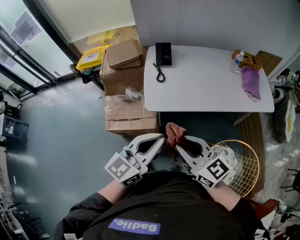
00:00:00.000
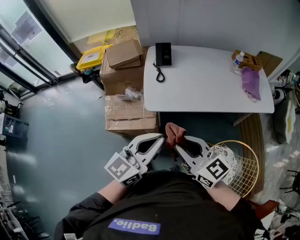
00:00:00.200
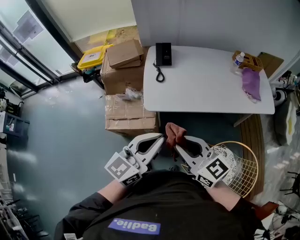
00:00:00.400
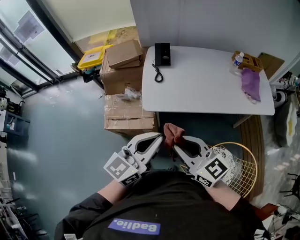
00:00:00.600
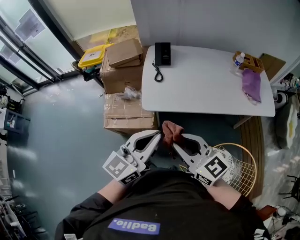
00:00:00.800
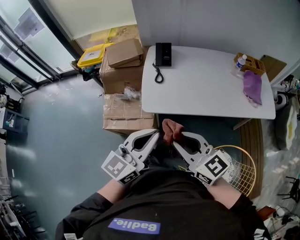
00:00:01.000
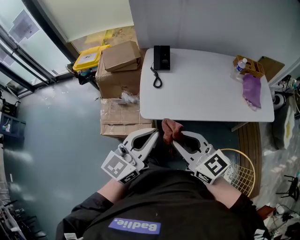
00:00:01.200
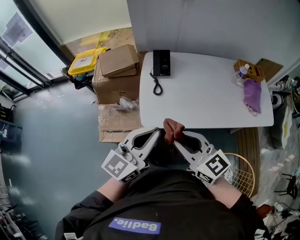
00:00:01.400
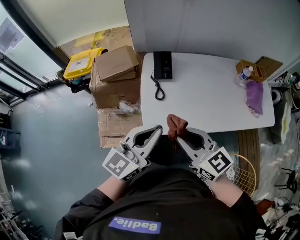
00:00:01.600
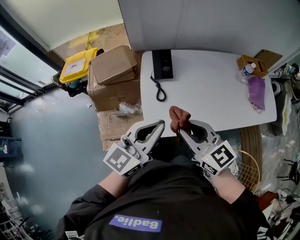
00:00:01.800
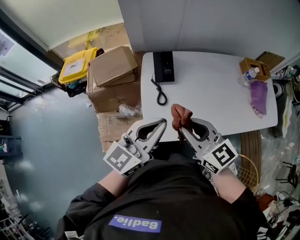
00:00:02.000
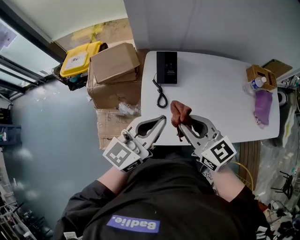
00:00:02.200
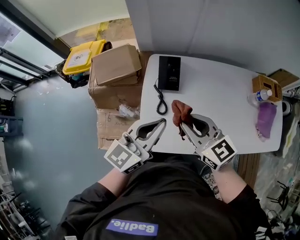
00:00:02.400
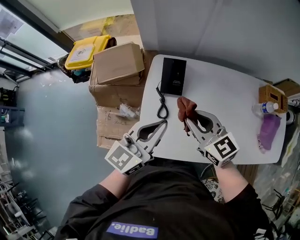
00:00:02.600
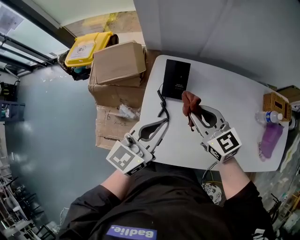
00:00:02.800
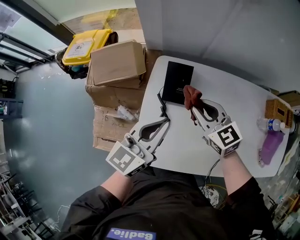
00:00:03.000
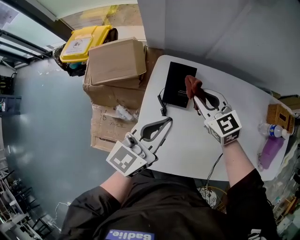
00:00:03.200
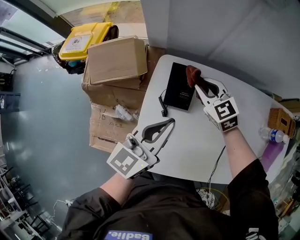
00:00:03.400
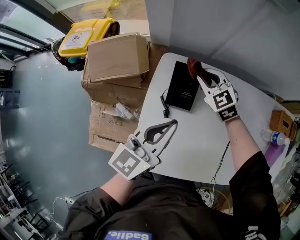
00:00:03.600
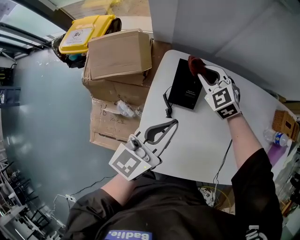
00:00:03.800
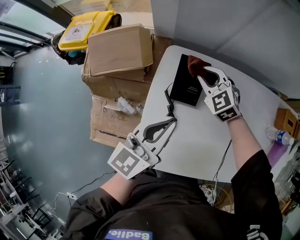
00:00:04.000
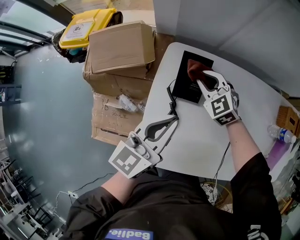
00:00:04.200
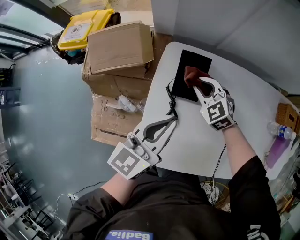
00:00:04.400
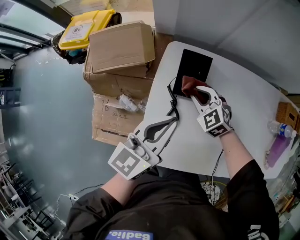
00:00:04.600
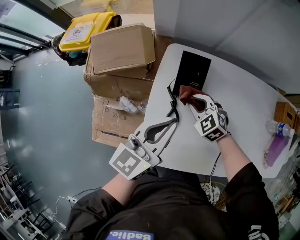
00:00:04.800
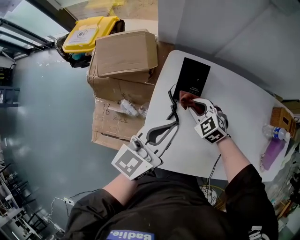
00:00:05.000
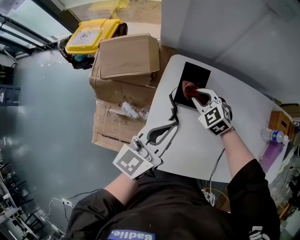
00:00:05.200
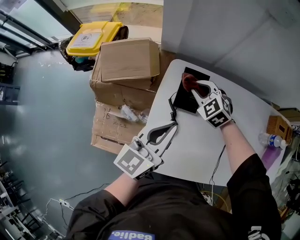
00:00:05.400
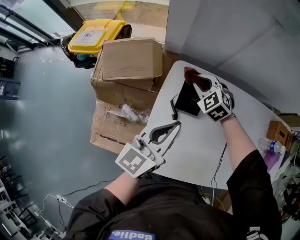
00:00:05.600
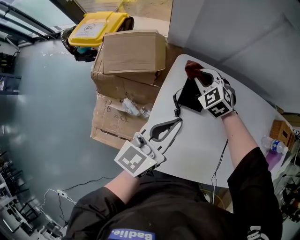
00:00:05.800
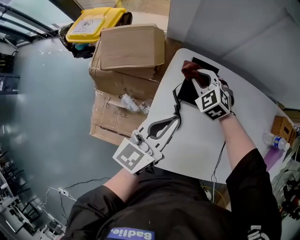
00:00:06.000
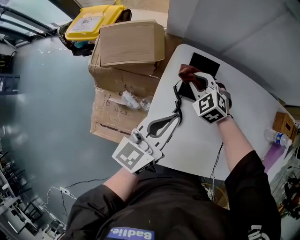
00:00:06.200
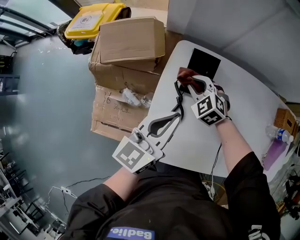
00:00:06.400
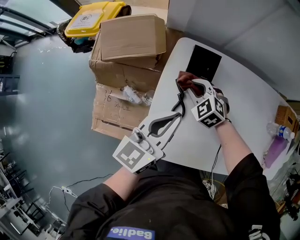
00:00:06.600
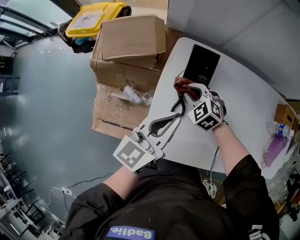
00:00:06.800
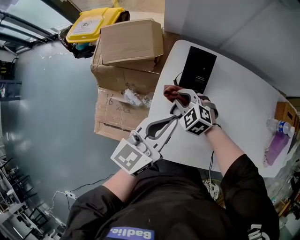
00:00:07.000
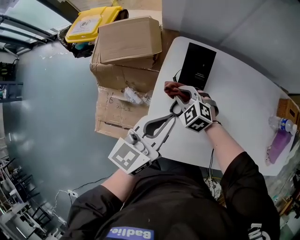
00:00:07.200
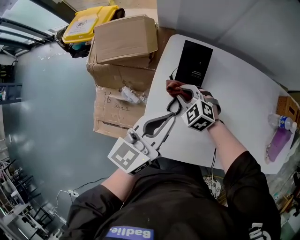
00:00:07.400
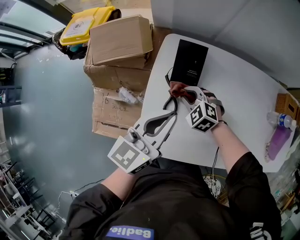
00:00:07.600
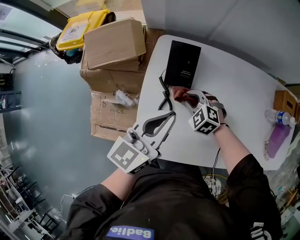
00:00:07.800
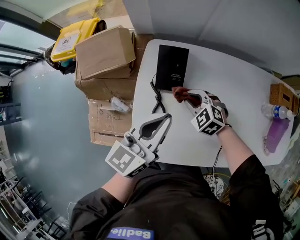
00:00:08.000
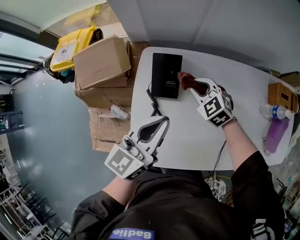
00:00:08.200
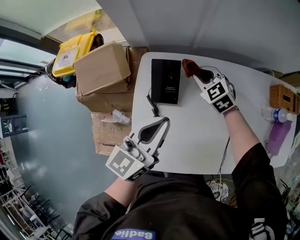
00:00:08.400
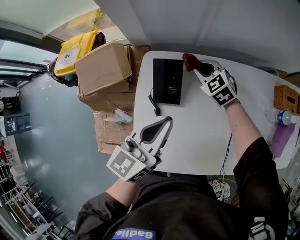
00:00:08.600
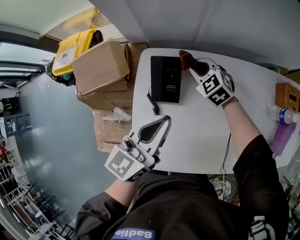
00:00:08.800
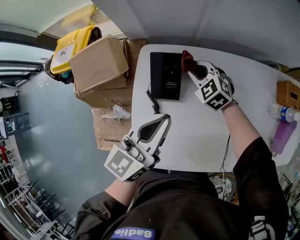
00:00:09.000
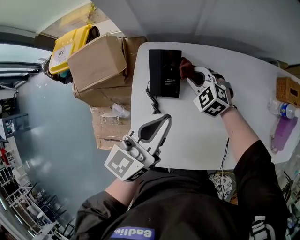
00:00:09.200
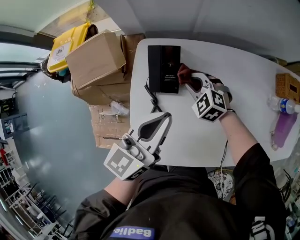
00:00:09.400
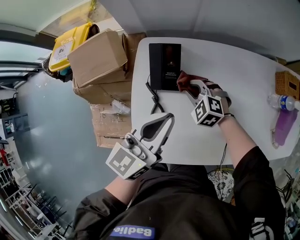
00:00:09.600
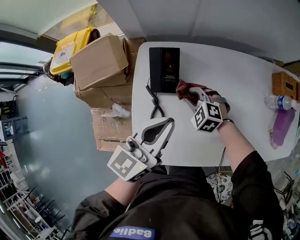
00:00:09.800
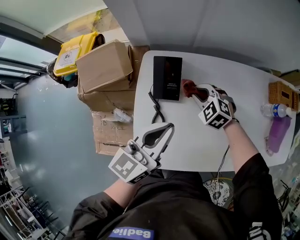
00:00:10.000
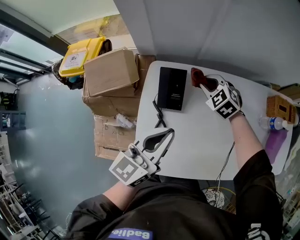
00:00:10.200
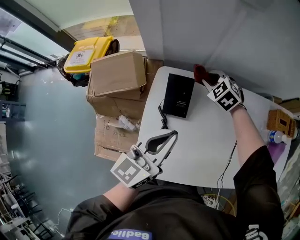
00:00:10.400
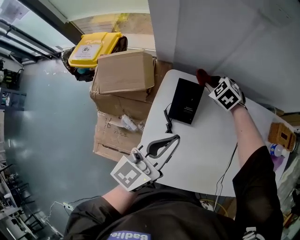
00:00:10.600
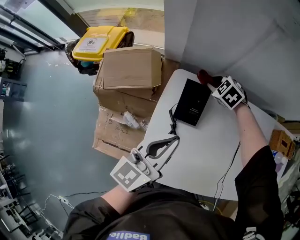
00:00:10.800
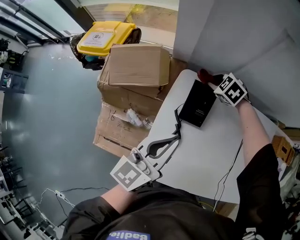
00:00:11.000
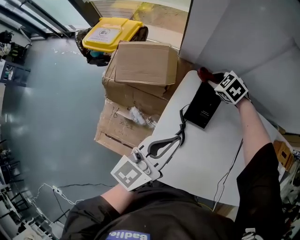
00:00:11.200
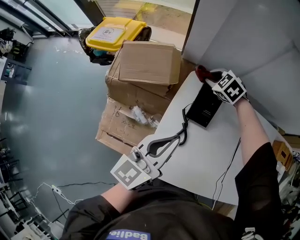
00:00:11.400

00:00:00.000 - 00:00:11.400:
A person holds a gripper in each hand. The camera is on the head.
00:00:00.000 - 00:00:01.400: The two grippers go approximately 15 cm forward.
00:00:01.400 - 00:00:02.800: Both grippers move forward, roughly 35 cm.
00:00:02.800 - 00:00:04.200: The right gripper travels forward and downward by roughly 20 cm, and turns by roughly 40 degrees; the left gripper travels downward and forward by about 10 cm.
00:00:04.200 - 00:00:05.600: The right gripper reaches approximately 10 cm backward, then returns.
00:00:05.600 - 00:00:07.200: The left gripper goes about 5 cm backward. Meanwhile the right gripper travels backward and downward by about 20 cm.
00:00:07.200 - 00:00:08.600: The right gripper is displaced to the right and forward by about 25 cm, and turns by some 20 degrees; the left gripper goes approximately 10 cm to the right and forward.
00:00:08.600 - 00:00:10.000: The right gripper travels backward by about 10 cm. The left gripper travels backward by some 5 cm.
00:00:10.000 - 00:00:11.400: The right gripper travels forward and to the left by about 25 cm. Meanwhile the left gripper heads to the left, covering some 10 cm.

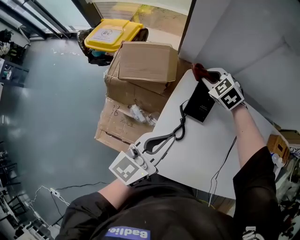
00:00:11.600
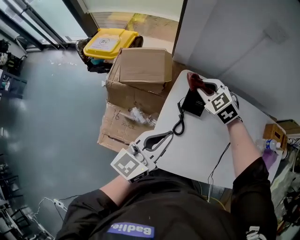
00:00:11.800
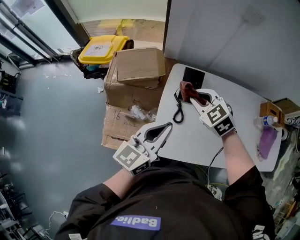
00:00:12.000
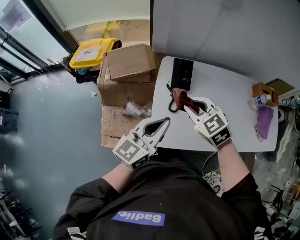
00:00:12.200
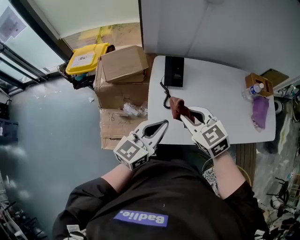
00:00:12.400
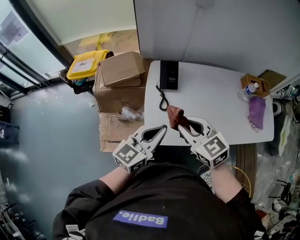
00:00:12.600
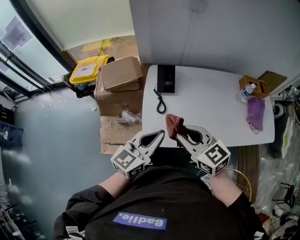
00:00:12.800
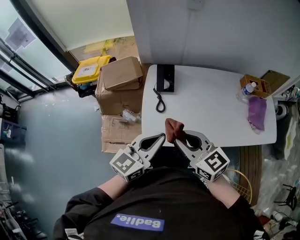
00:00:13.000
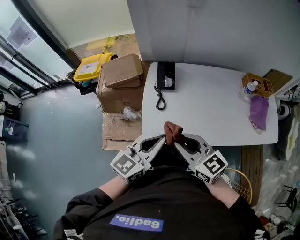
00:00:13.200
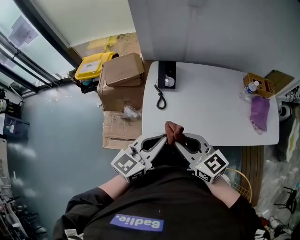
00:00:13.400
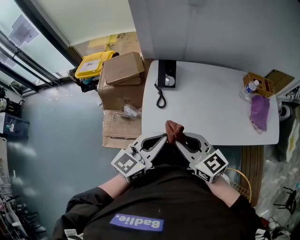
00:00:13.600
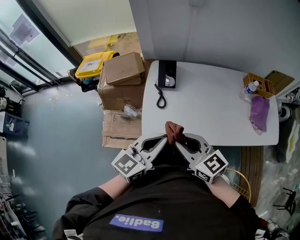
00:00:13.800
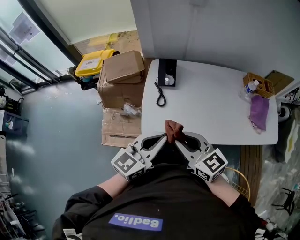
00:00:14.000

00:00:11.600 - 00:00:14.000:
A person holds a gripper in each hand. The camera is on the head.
00:00:11.600 - 00:00:12.800: The right gripper shifts about 50 cm backward, and tilts its fingers about 30 degrees upward; the left gripper moves backward, some 20 cm, and rotates approximately 20 degrees.
00:00:12.800 - 00:00:14.000: The left gripper shifts by approximately 5 cm, while the right gripper moves some 5 cm.

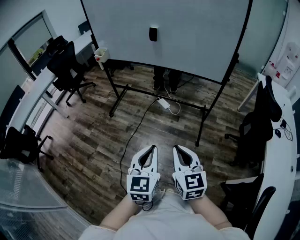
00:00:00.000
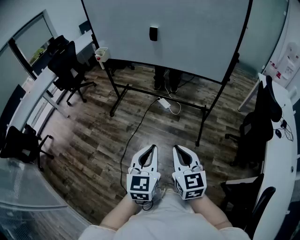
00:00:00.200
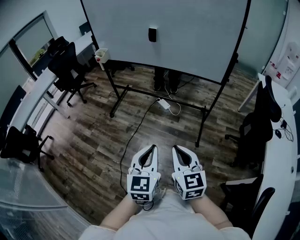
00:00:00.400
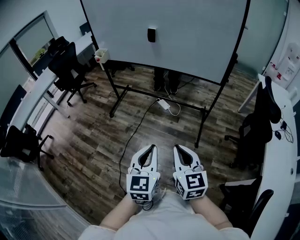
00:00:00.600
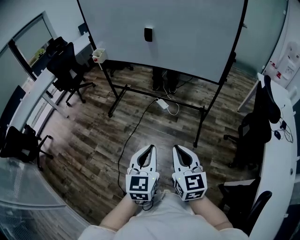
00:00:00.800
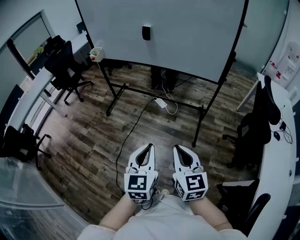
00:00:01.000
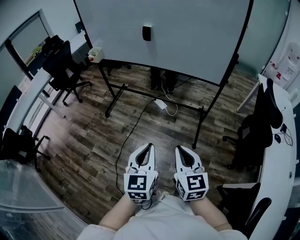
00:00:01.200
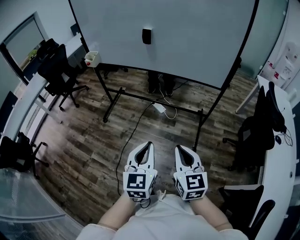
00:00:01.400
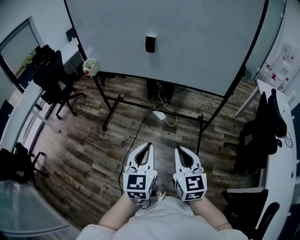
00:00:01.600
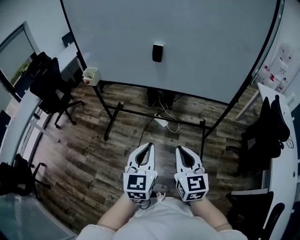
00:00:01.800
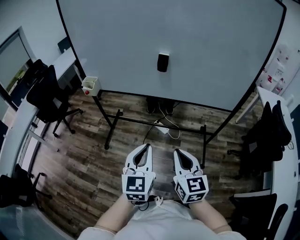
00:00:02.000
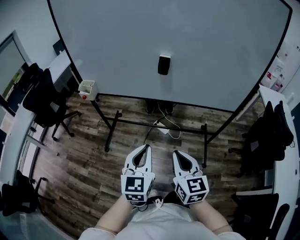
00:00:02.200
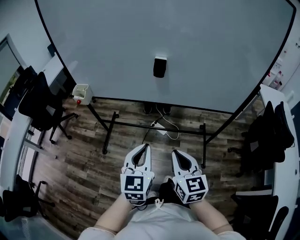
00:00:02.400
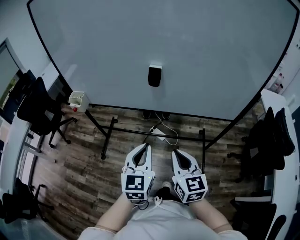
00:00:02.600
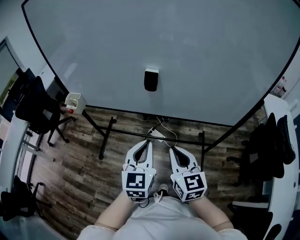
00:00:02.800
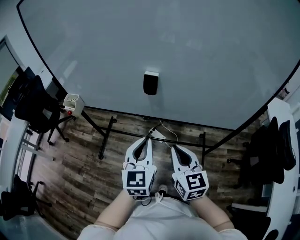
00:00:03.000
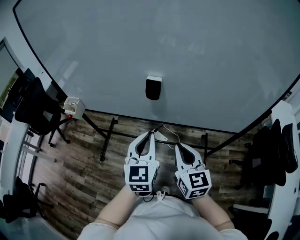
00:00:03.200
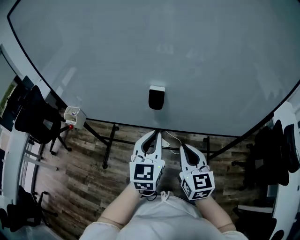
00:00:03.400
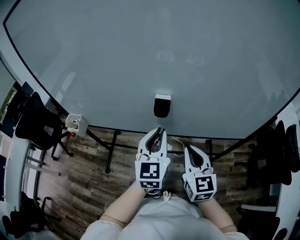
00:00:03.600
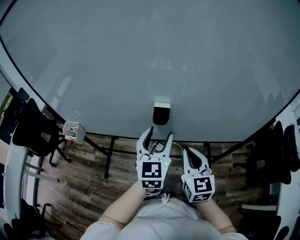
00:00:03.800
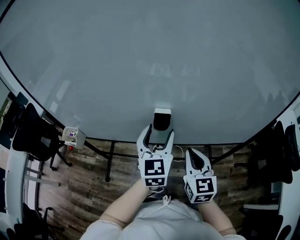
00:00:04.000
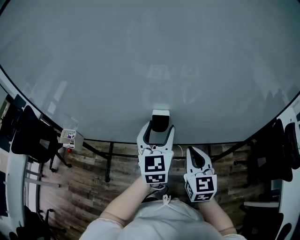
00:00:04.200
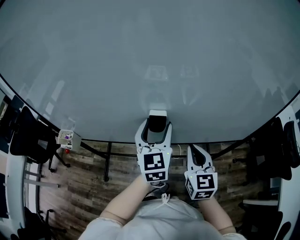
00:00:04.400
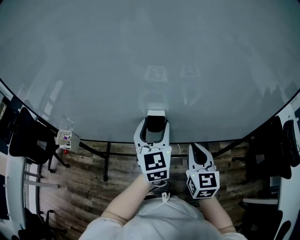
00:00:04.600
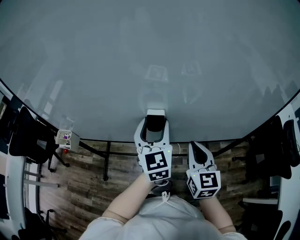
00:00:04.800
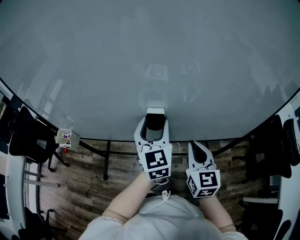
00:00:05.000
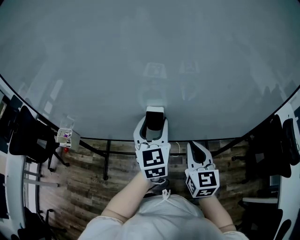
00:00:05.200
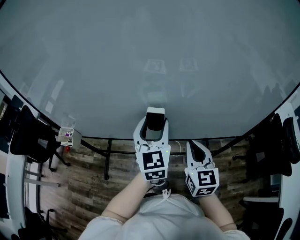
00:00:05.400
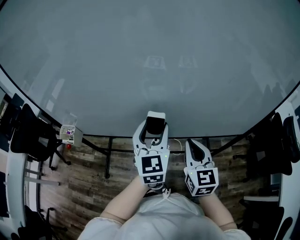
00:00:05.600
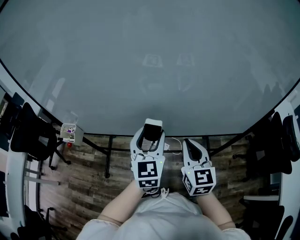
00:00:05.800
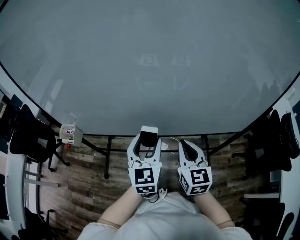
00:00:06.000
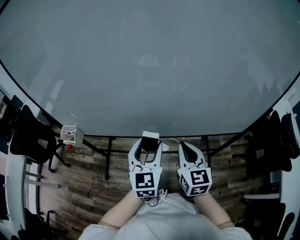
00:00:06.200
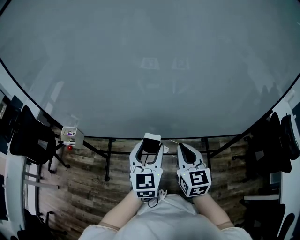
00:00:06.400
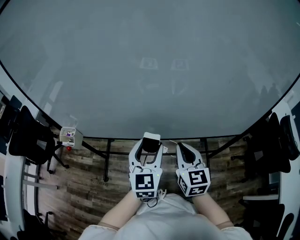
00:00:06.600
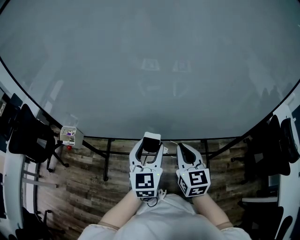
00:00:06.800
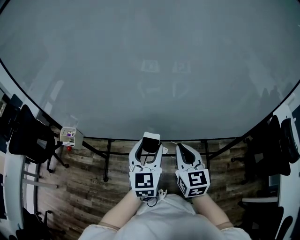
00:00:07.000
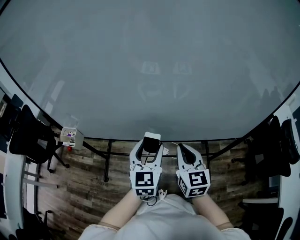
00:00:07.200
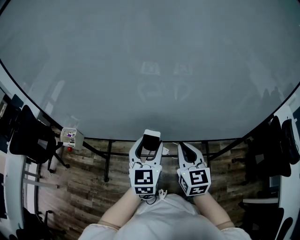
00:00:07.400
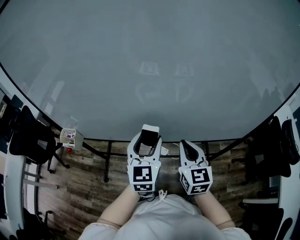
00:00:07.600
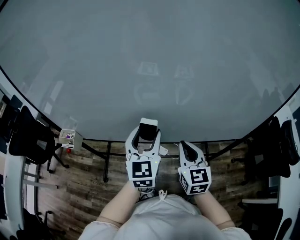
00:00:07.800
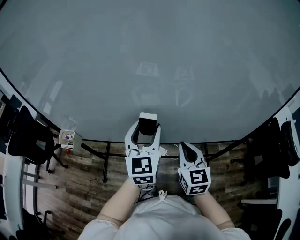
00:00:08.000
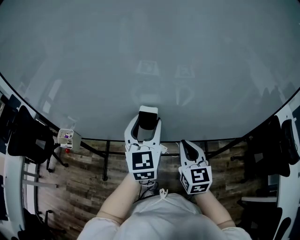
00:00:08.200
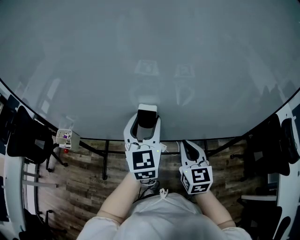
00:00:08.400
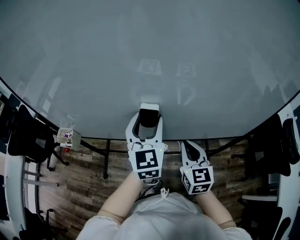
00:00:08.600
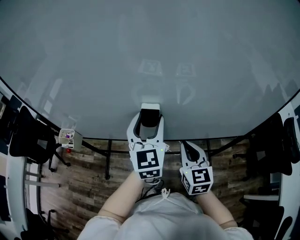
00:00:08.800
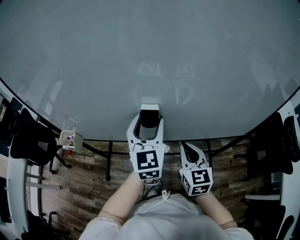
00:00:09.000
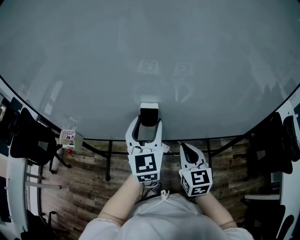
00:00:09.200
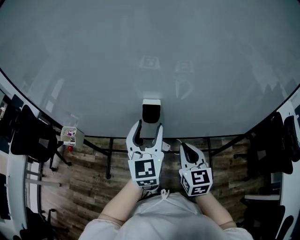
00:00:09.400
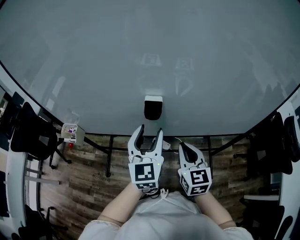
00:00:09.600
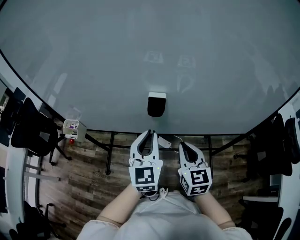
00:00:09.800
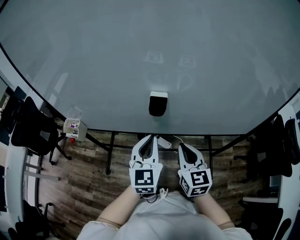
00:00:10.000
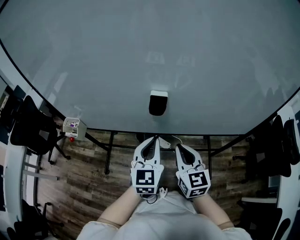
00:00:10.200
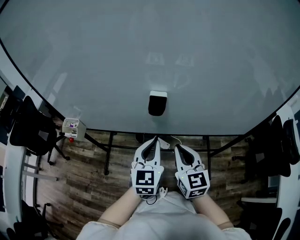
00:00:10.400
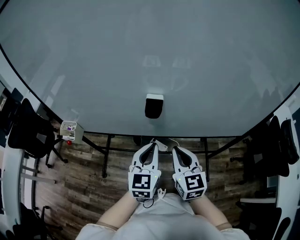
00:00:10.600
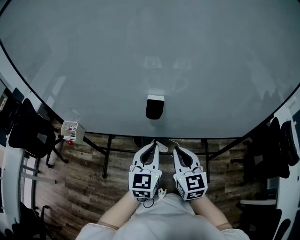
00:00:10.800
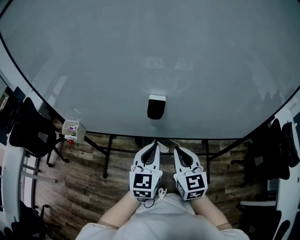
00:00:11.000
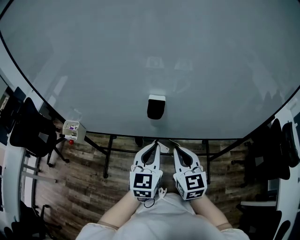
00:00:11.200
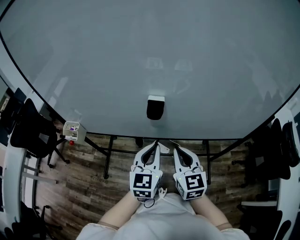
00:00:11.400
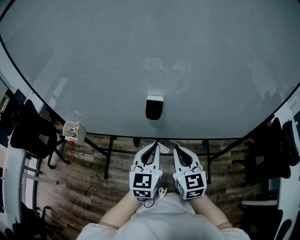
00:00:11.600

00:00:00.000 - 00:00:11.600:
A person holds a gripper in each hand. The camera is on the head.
00:00:00.000 - 00:00:01.400: Both grippers travel together forward, roughly 10 cm.
00:00:01.400 - 00:00:02.800: Both grippers move forward, about 35 cm.
00:00:02.800 - 00:00:04.400: The two grippers go approximately 20 cm forward. The left gripper opens its fingers.
00:00:04.400 - 00:00:05.800: The left gripper travels backward by some 5 cm.
00:00:05.800 - 00:00:07.200: The grippers move only a little.
00:00:07.200 - 00:00:08.800: The left gripper is displaced forward and upward by about 10 cm.
00:00:08.800 - 00:00:10.200: The left gripper moves backward and downward, approximately 15 cm, and closes its fingers; the right gripper shifts by some 5 cm.
00:00:10.200 - 00:00:11.600: The grippers stay close to where they were, moving slightly.
